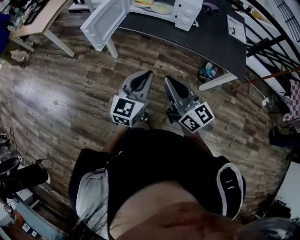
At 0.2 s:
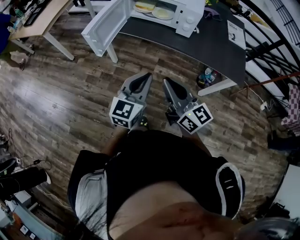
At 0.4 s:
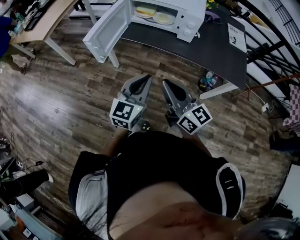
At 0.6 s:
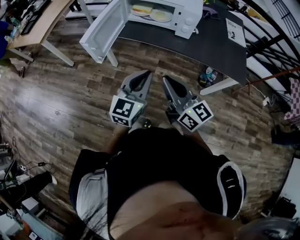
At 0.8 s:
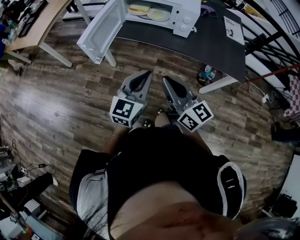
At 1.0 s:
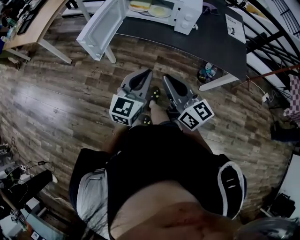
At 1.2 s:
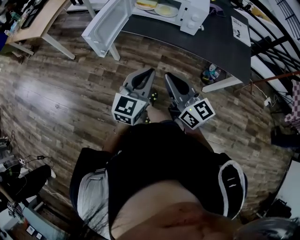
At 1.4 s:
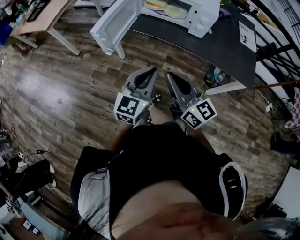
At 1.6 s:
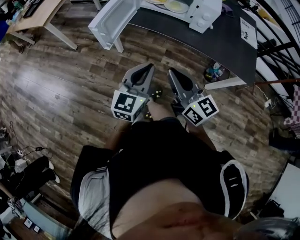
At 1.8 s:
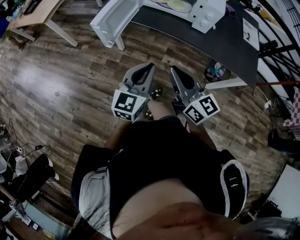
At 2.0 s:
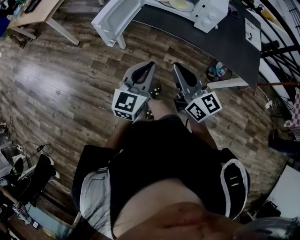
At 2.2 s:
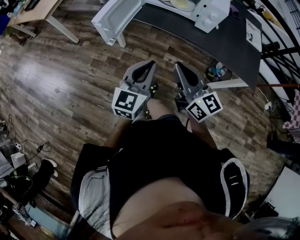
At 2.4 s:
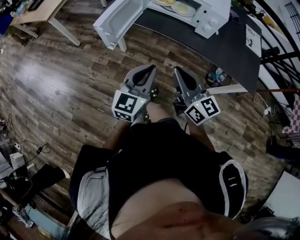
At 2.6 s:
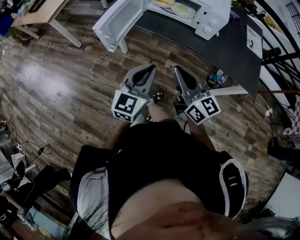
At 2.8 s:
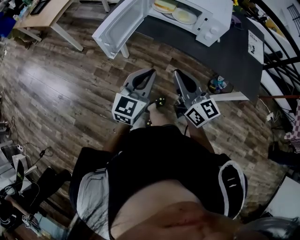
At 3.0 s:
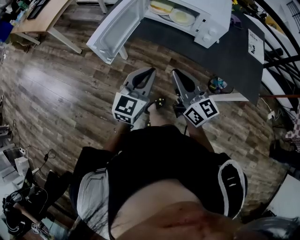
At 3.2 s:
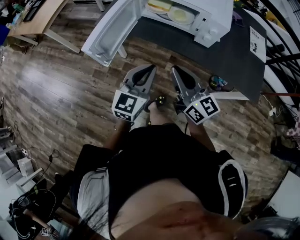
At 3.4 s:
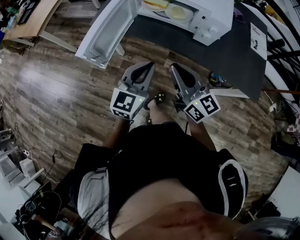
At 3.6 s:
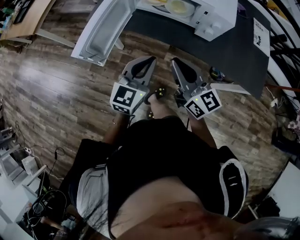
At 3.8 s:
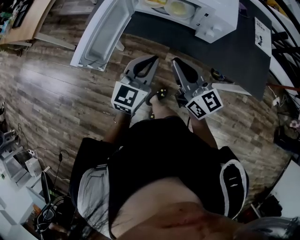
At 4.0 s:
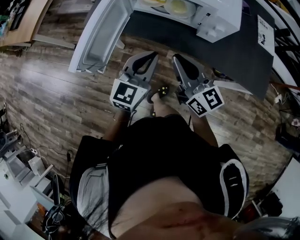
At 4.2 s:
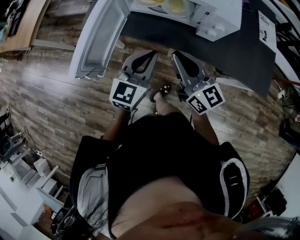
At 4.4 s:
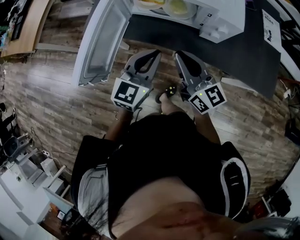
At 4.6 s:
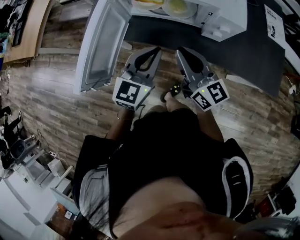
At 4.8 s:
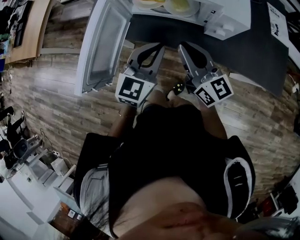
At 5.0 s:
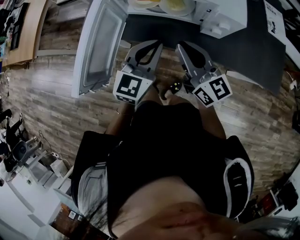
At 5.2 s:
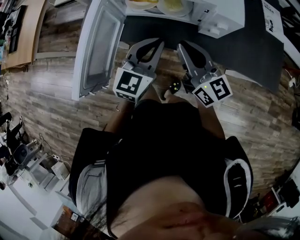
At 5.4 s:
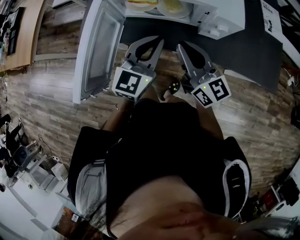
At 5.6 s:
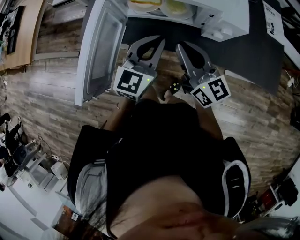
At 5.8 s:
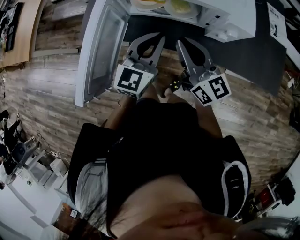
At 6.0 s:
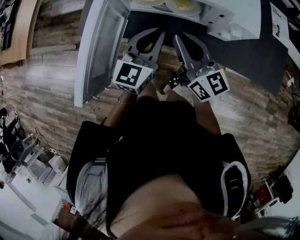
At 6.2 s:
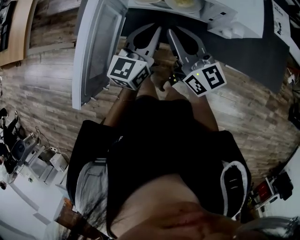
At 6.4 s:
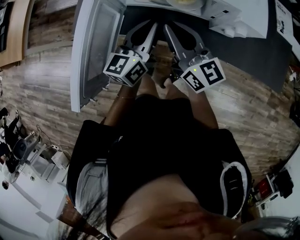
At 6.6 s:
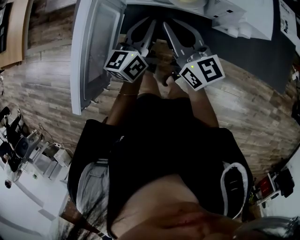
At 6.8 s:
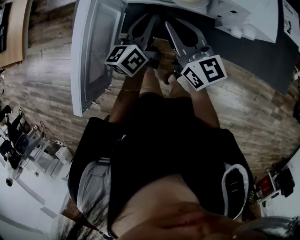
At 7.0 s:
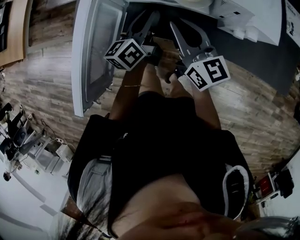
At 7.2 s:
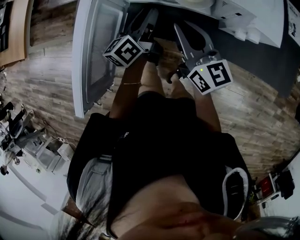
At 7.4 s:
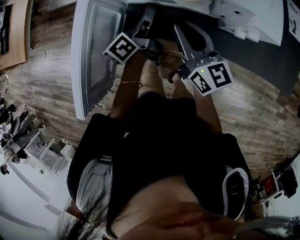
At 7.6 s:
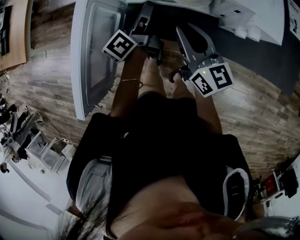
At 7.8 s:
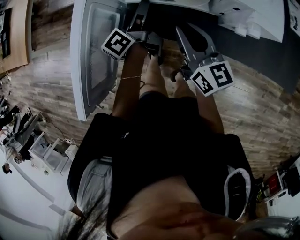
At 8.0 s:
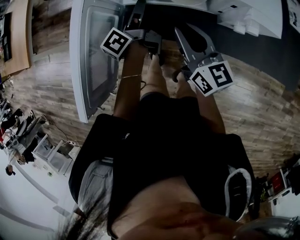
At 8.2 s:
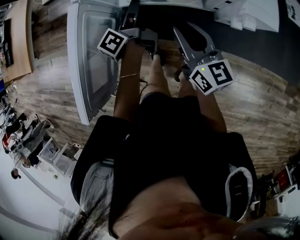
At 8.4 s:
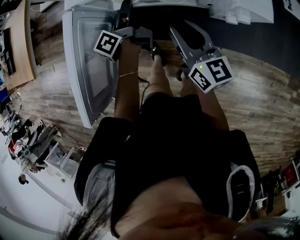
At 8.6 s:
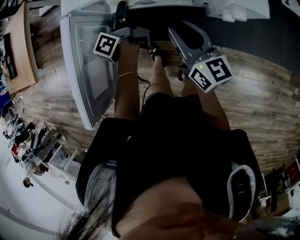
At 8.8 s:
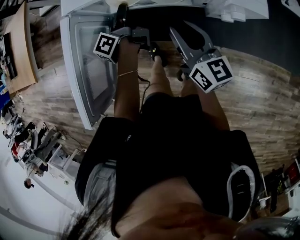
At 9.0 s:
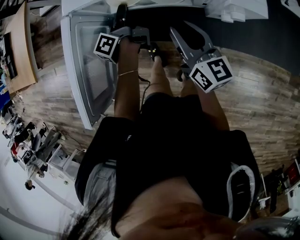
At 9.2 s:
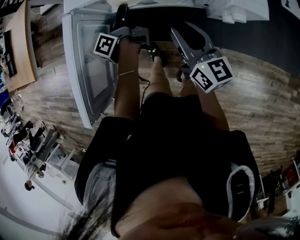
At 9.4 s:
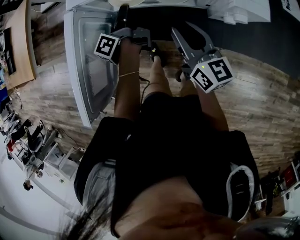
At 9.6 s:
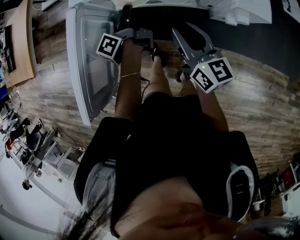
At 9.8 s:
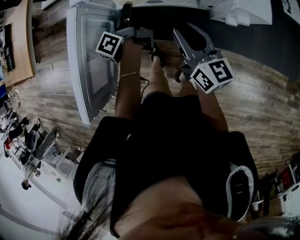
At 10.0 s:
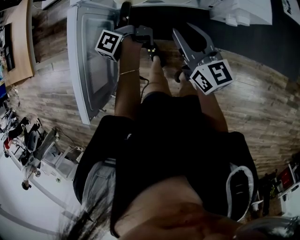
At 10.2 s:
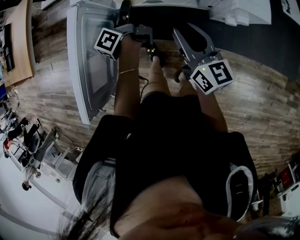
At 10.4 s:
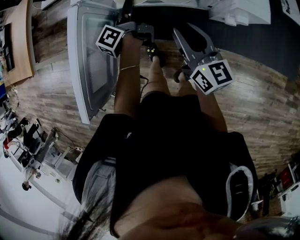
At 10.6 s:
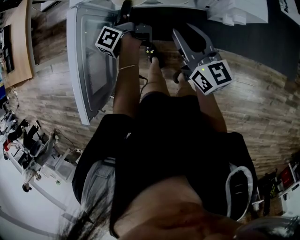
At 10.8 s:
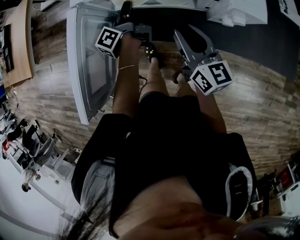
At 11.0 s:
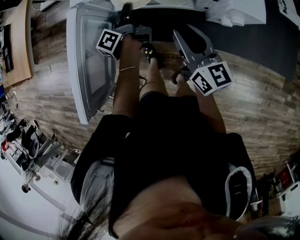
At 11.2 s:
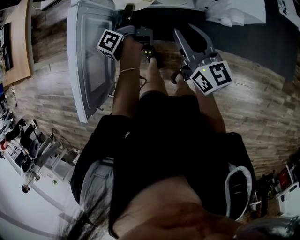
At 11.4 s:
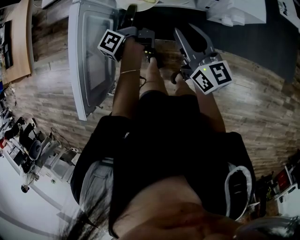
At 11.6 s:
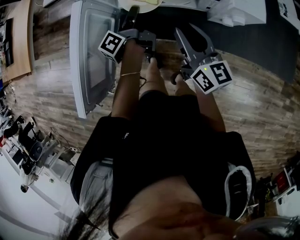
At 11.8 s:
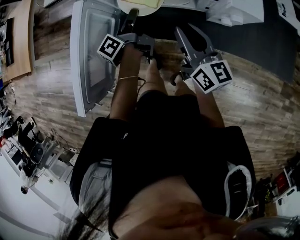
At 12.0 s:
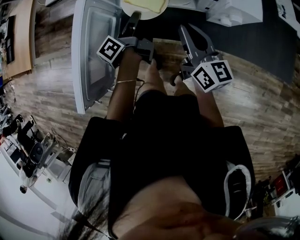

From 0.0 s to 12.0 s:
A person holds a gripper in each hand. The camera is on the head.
From 0.0 s to 1.6 s: The right gripper is displaced forward by approximately 10 cm, while the left gripper travels forward and to the left by about 10 cm.
From 1.6 s to 3.0 s: The two grippers go approximately 10 cm forward.
From 3.0 s to 4.4 s: The two grippers go about 15 cm forward.
From 4.4 s to 6.0 s: The two grippers go about 10 cm forward.
From 6.0 s to 7.6 s: The left gripper goes about 15 cm forward and downward, twists about 60 degrees counterclockwise, seen from behind, and opens; the right gripper travels downward by approximately 5 cm.
From 7.6 s to 9.0 s: The left gripper shifts by approximately 5 cm, turns by about 20 degrees, and closes up.
From 9.0 s to 10.4 s: The grippers make only small movements.
From 10.4 s to 12.0 s: The left gripper moves backward, approximately 5 cm, and closes its fingers.

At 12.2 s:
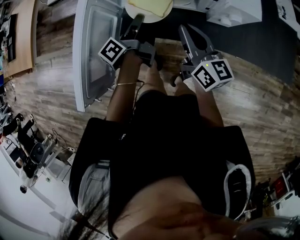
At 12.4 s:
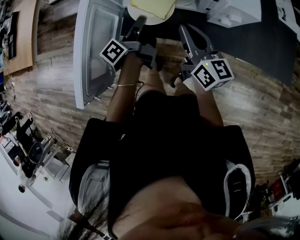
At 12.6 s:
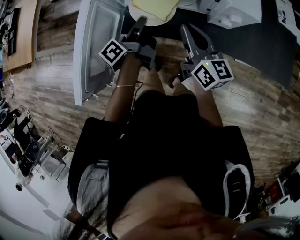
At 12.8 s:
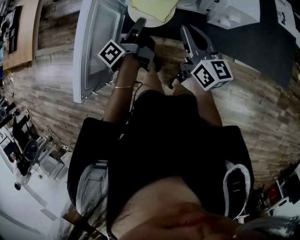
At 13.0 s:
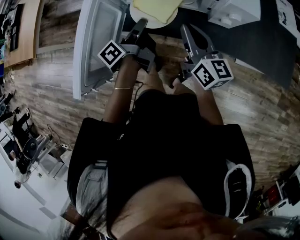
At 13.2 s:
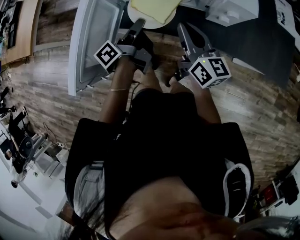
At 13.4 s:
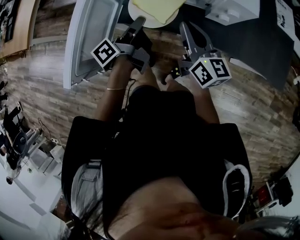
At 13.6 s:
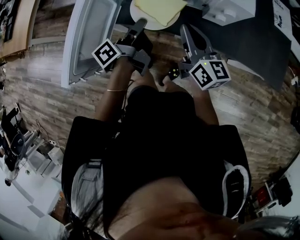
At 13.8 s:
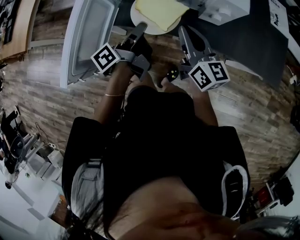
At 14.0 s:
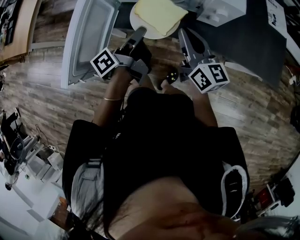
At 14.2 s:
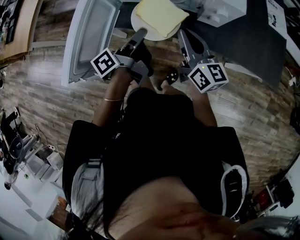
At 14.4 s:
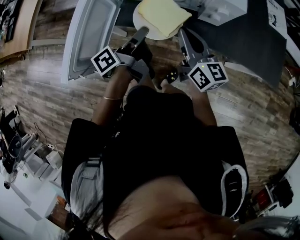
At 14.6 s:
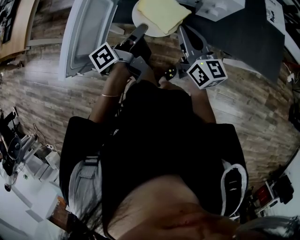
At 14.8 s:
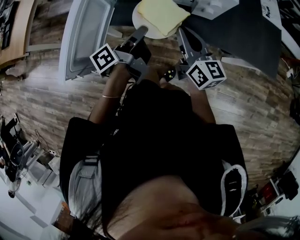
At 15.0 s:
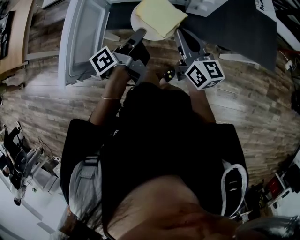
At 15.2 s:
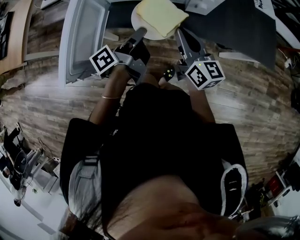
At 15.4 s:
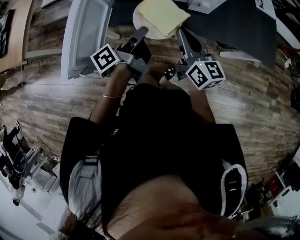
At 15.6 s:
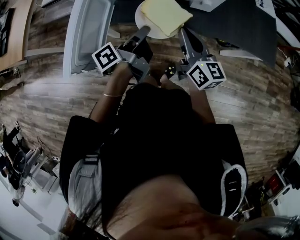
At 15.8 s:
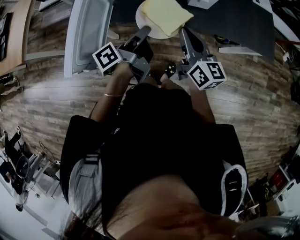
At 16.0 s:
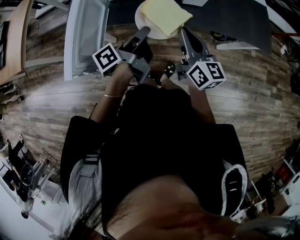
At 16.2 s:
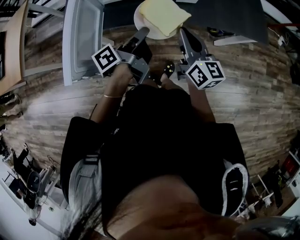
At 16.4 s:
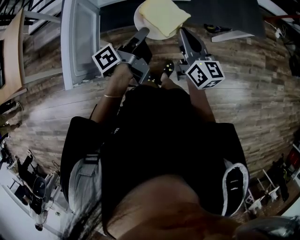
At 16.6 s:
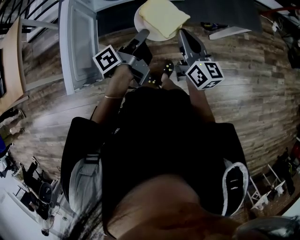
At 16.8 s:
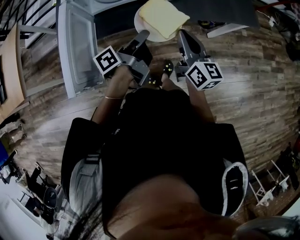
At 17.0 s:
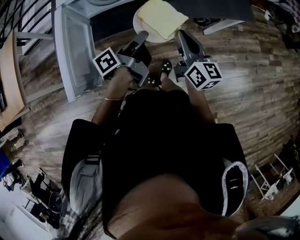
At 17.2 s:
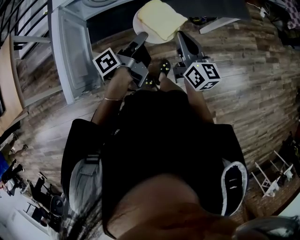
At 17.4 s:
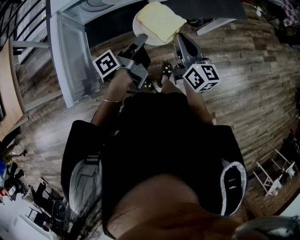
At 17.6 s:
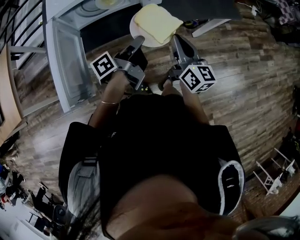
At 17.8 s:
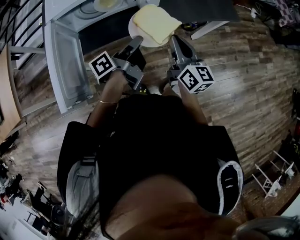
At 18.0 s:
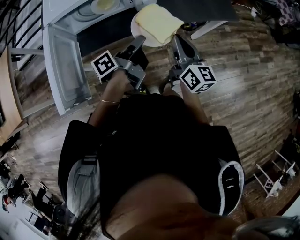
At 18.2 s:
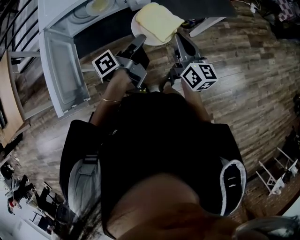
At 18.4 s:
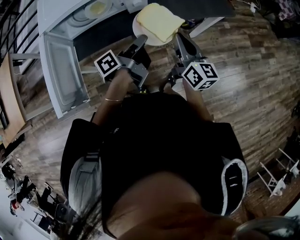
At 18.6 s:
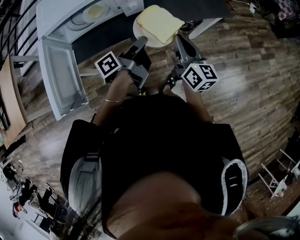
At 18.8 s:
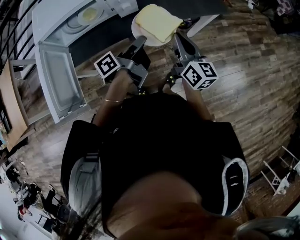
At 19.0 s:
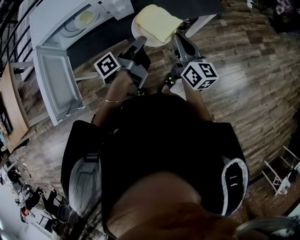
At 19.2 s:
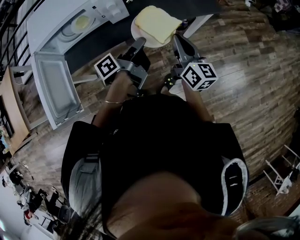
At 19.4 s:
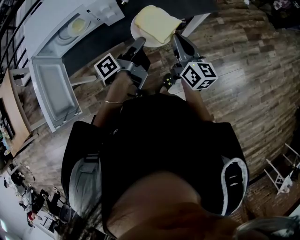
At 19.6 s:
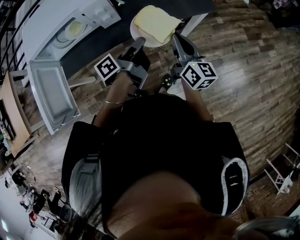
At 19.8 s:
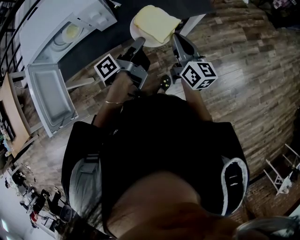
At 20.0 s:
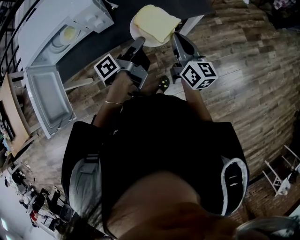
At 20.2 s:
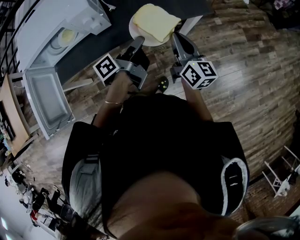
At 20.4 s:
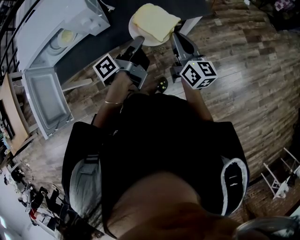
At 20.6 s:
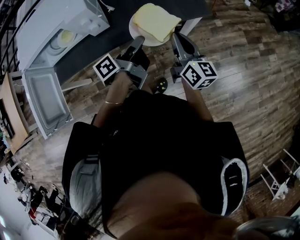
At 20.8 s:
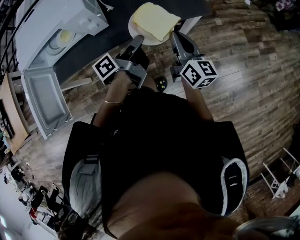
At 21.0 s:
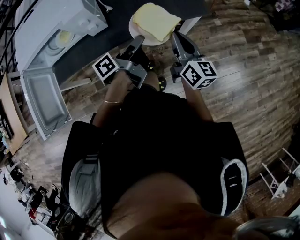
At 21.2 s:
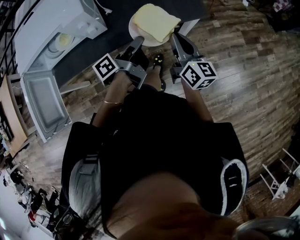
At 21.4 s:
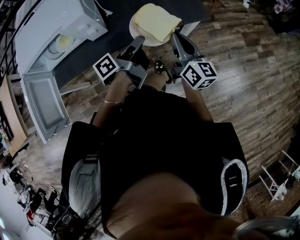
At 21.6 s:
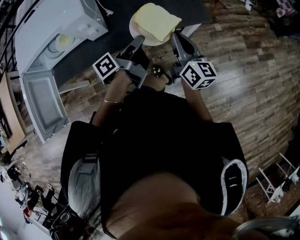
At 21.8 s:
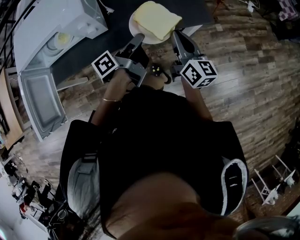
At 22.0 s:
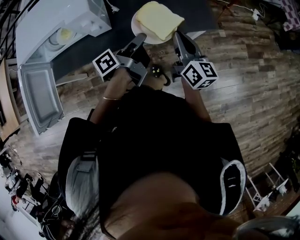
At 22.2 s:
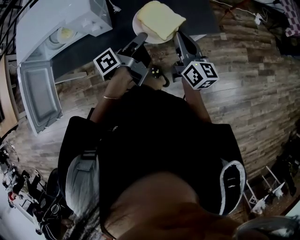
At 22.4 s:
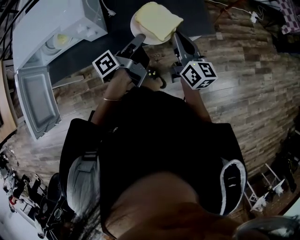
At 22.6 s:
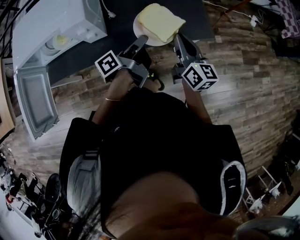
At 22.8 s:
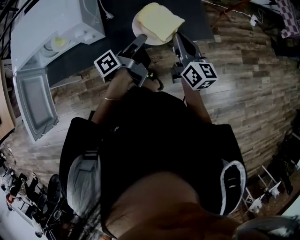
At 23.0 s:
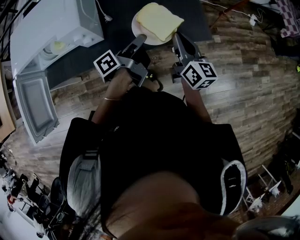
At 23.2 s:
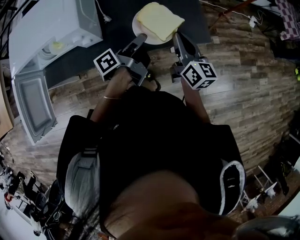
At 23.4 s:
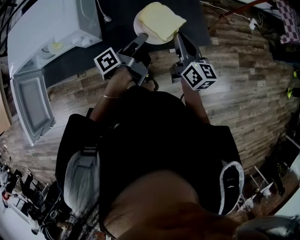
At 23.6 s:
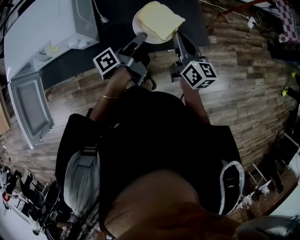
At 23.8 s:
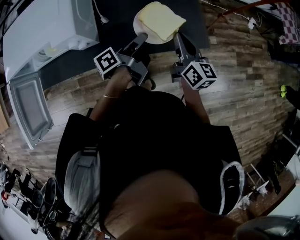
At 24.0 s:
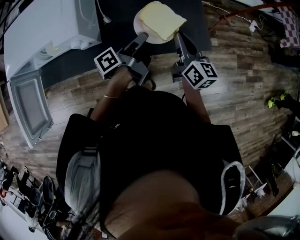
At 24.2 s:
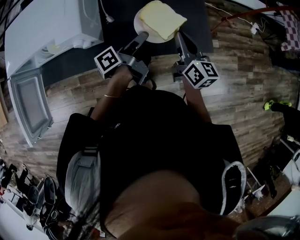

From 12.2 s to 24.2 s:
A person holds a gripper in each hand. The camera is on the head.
From 12.2 s to 13.8 s: The left gripper heads backward, covering some 10 cm, while the right gripper ends up about 5 cm from where it was.
From 13.8 s to 15.2 s: The left gripper ends up approximately 5 cm from where it was.
From 15.2 s to 16.6 s: The right gripper shifts about 5 cm backward.
From 16.6 s to 18.2 s: The grippers both shift to the right by roughly 10 cm.
From 18.2 s to 19.8 s: The grippers both shift to the right and forward by roughly 15 cm.
From 19.8 s to 21.2 s: The right gripper shifts by some 5 cm. Meanwhile the left gripper moves about 5 cm.
From 21.2 s to 22.6 s: The two grippers go some 10 cm forward.
From 22.6 s to 24.2 s: Both grippers move forward, roughly 10 cm.
